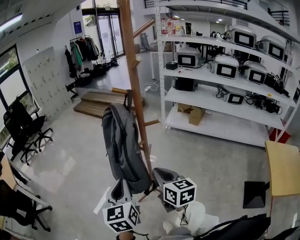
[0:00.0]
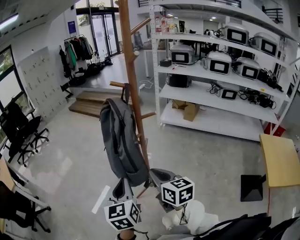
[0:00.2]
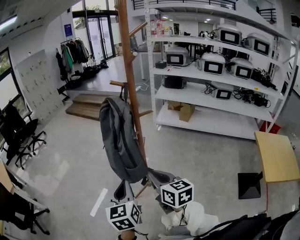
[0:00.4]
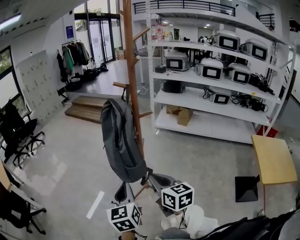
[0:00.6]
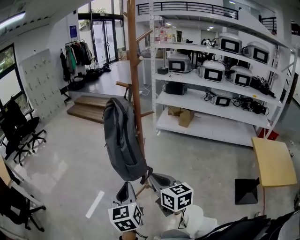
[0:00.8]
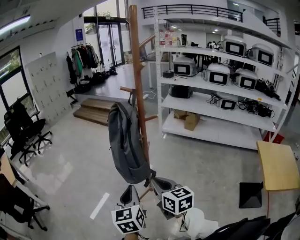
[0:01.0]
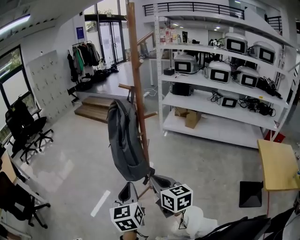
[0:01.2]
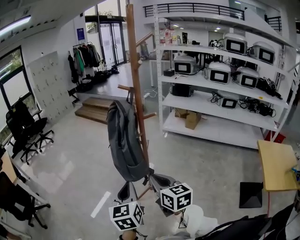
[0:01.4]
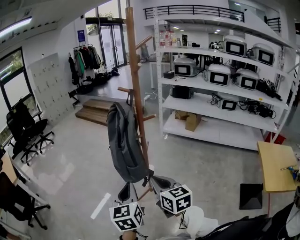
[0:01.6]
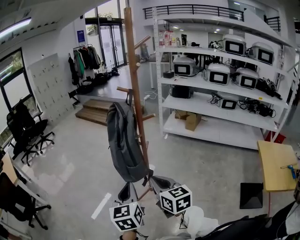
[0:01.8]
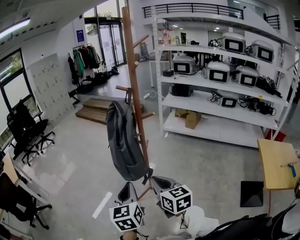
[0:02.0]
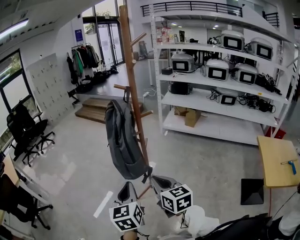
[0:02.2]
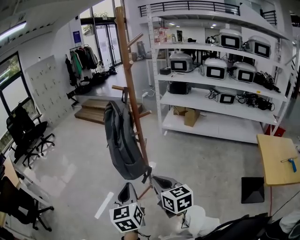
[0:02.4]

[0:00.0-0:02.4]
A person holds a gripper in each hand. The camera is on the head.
0:00.0 to 0:01.2: Both grippers travel together backward, approximately 10 cm.
0:01.2 to 0:02.4: There are only small adjustments of the grippers.

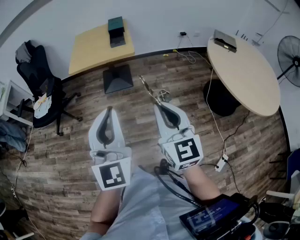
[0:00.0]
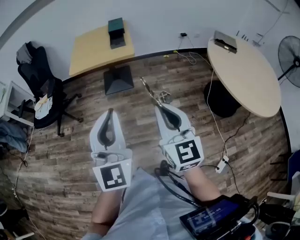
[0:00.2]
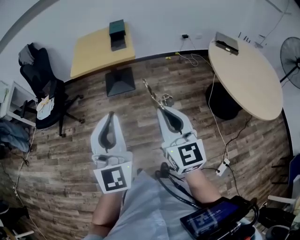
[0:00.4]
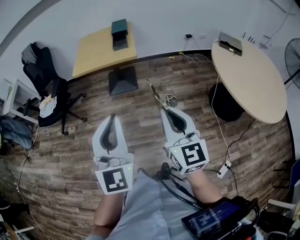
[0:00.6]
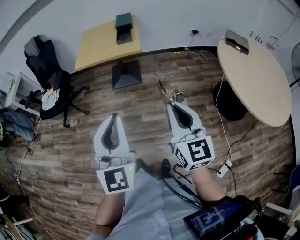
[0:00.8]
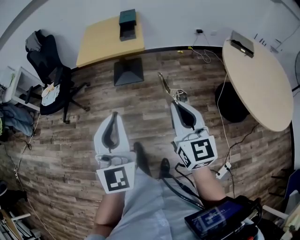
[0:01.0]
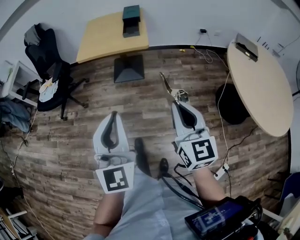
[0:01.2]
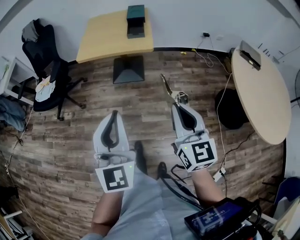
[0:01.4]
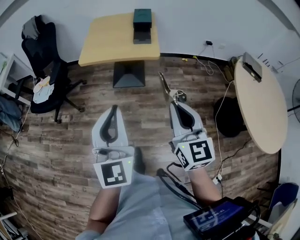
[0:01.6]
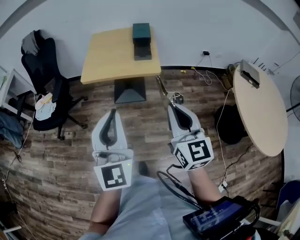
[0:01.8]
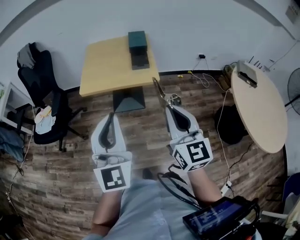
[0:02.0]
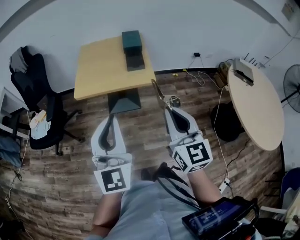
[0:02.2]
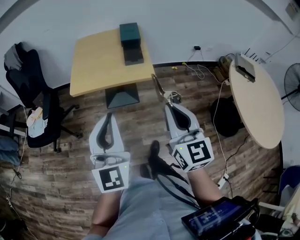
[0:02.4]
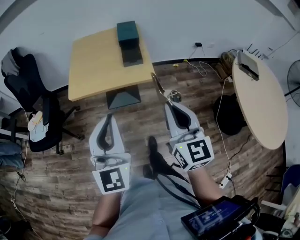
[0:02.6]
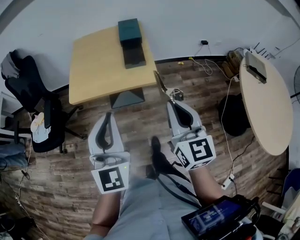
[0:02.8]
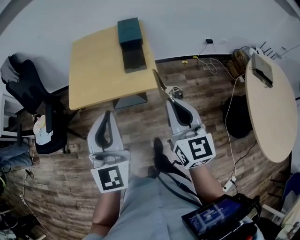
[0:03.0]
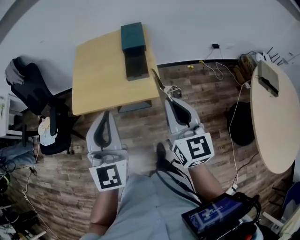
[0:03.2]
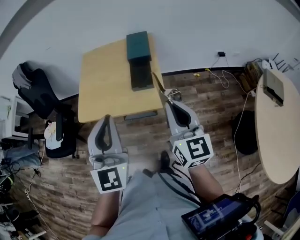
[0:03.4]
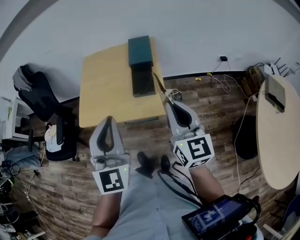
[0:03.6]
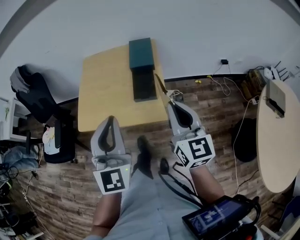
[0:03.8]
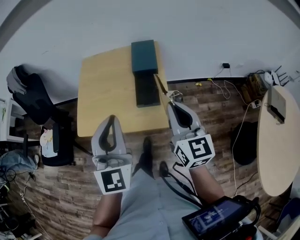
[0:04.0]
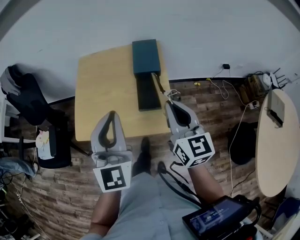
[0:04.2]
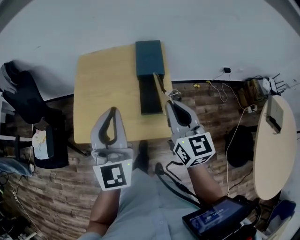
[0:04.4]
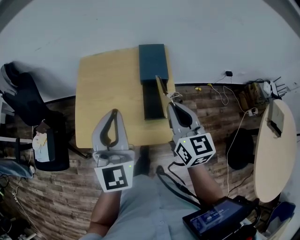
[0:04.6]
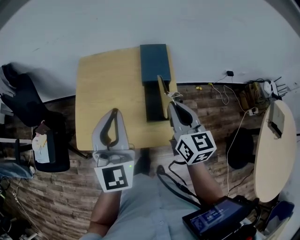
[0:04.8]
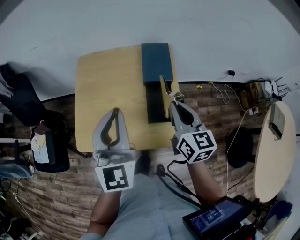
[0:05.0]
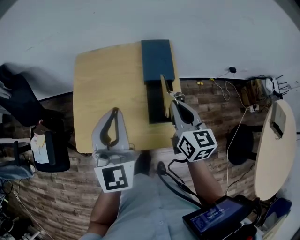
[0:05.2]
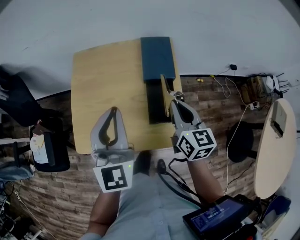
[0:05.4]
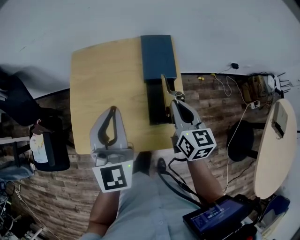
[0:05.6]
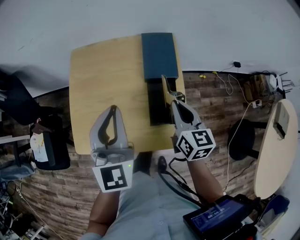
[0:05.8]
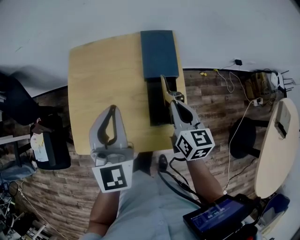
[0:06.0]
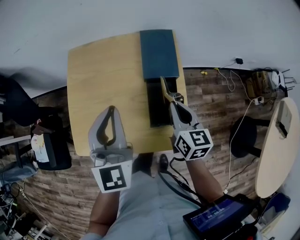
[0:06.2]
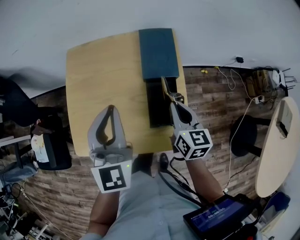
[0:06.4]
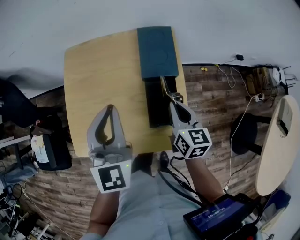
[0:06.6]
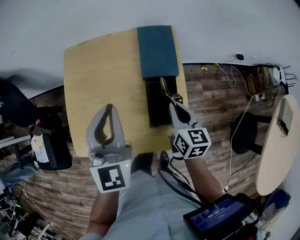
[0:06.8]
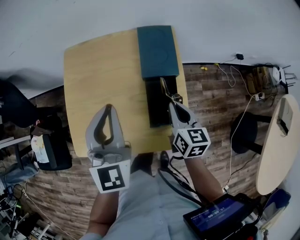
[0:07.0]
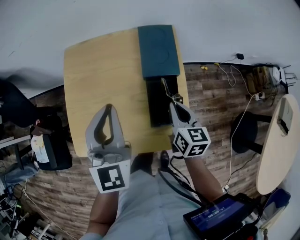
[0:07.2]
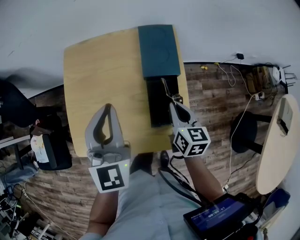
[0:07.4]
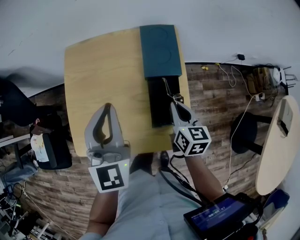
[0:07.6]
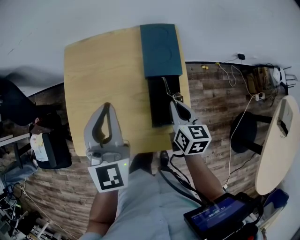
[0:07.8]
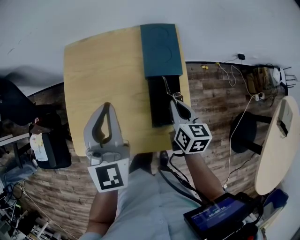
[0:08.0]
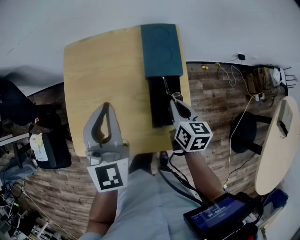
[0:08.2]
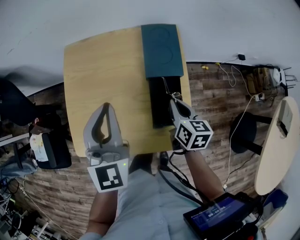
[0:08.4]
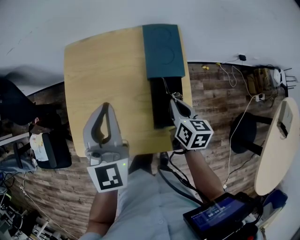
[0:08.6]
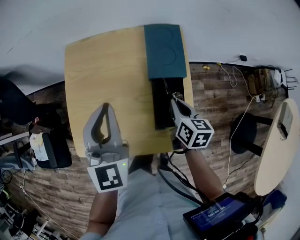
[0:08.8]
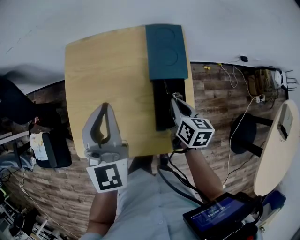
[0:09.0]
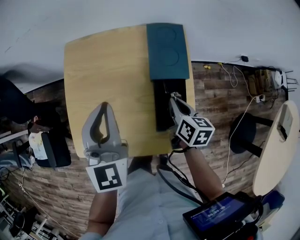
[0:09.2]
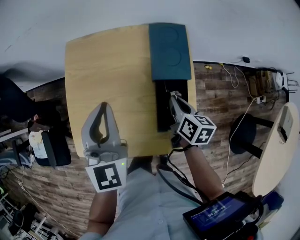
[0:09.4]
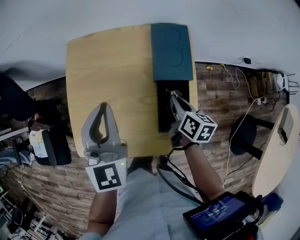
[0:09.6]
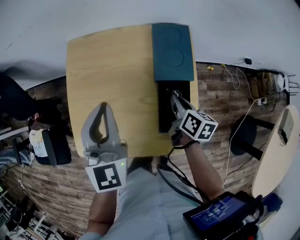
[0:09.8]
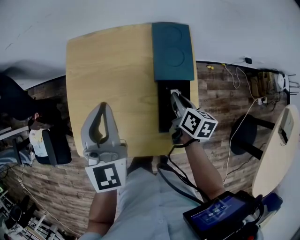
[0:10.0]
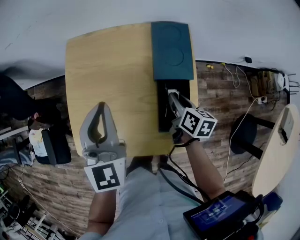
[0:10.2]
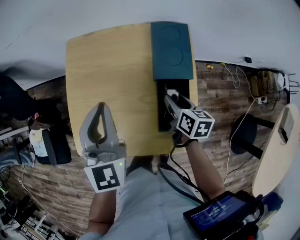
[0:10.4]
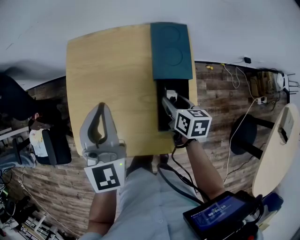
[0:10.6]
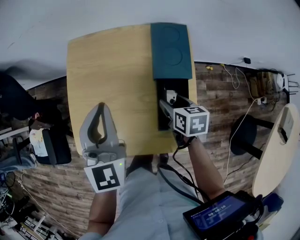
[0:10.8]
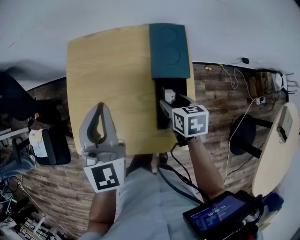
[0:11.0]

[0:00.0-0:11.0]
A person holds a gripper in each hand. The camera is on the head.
0:00.0 to 0:01.6: The grippers both shift forward by roughly 20 cm.
0:01.6 to 0:03.2: The grippers both shift forward by roughly 35 cm.
0:03.2 to 0:04.8: Both grippers travel together forward, roughly 30 cm.
0:04.8 to 0:06.2: The right gripper moves downward and forward, roughly 15 cm. The left gripper is displaced forward and downward by approximately 10 cm.
0:06.2 to 0:07.8: The right gripper travels downward by approximately 5 cm.
0:07.8 to 0:09.4: The right gripper ends up roughly 5 cm from where it was.
0:09.4 to 0:11.0: The right gripper swivels approximately 30 degrees, and opens.

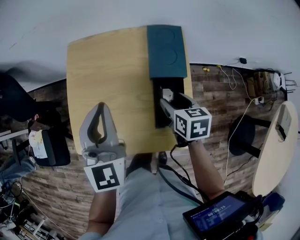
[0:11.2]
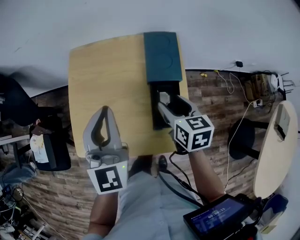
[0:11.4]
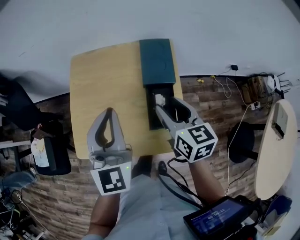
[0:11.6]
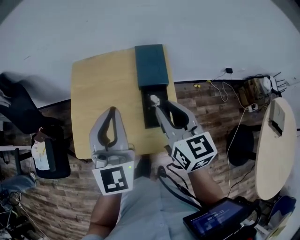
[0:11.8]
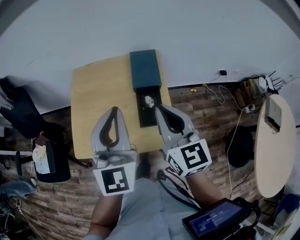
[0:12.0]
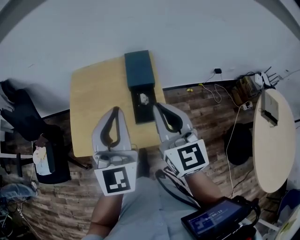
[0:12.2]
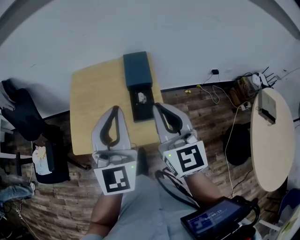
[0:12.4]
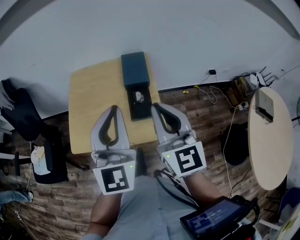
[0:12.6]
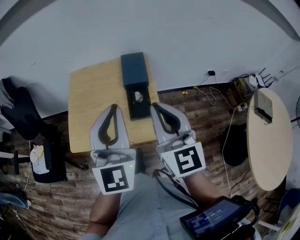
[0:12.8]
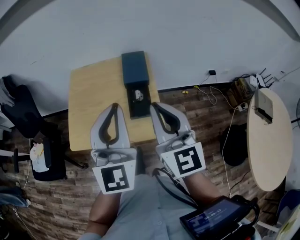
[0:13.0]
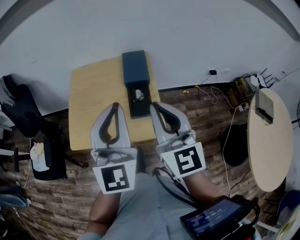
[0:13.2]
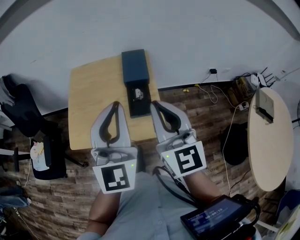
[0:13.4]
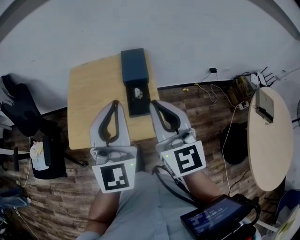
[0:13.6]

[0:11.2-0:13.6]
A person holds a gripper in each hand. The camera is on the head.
0:11.2 to 0:12.4: The right gripper is displaced upward and backward by approximately 35 cm, tilts its fingers roughly 50 degrees upward, and closes. Meanwhile the left gripper goes roughly 25 cm backward, upward and to the right.
0:12.4 to 0:13.6: There are only small adjustments of the grippers.

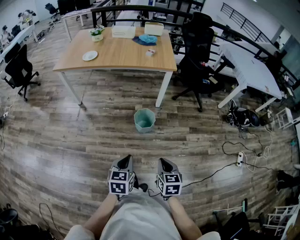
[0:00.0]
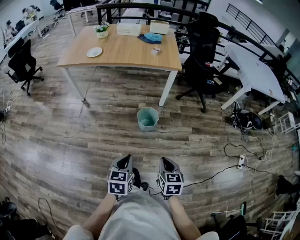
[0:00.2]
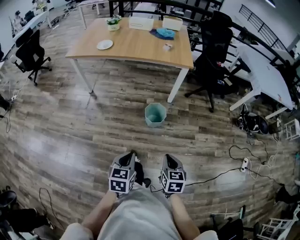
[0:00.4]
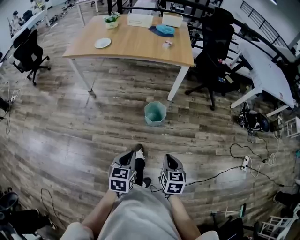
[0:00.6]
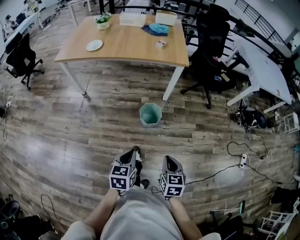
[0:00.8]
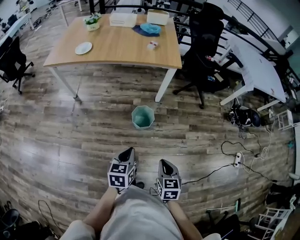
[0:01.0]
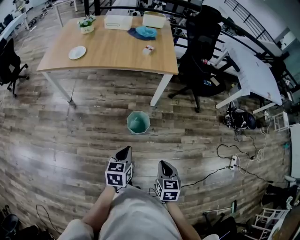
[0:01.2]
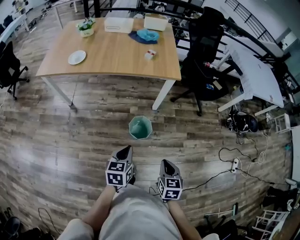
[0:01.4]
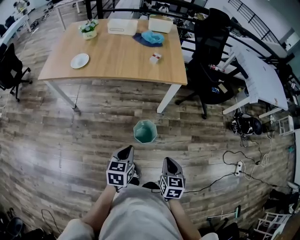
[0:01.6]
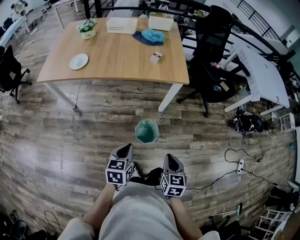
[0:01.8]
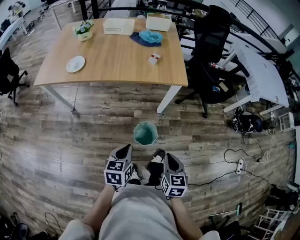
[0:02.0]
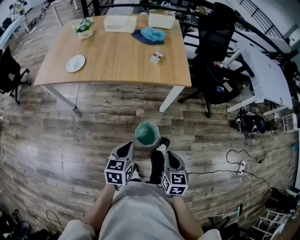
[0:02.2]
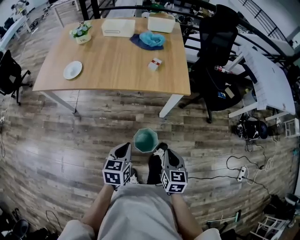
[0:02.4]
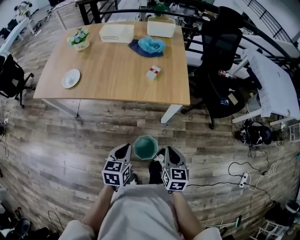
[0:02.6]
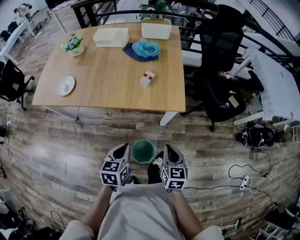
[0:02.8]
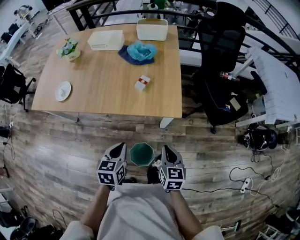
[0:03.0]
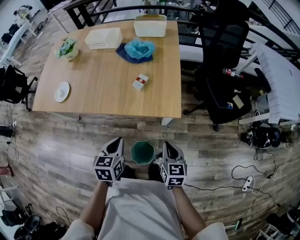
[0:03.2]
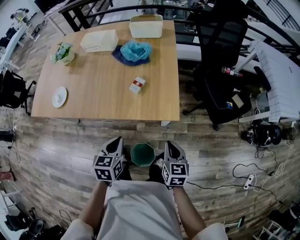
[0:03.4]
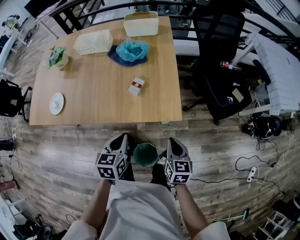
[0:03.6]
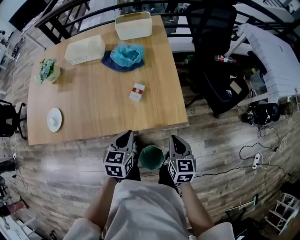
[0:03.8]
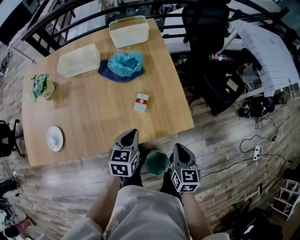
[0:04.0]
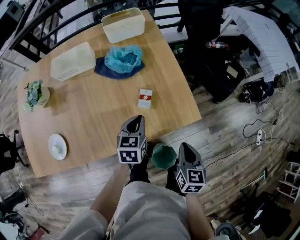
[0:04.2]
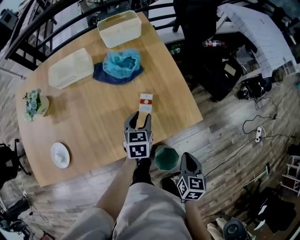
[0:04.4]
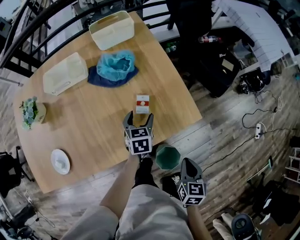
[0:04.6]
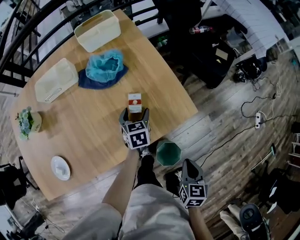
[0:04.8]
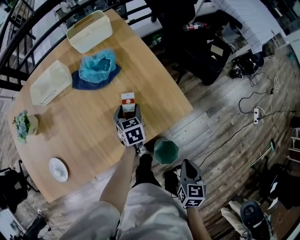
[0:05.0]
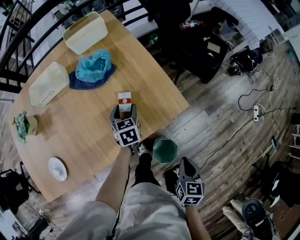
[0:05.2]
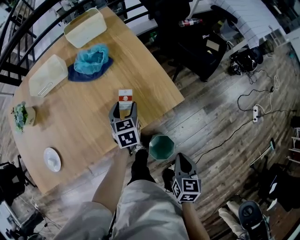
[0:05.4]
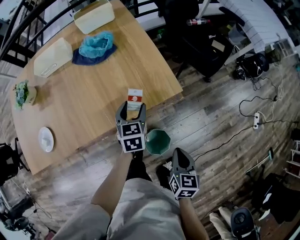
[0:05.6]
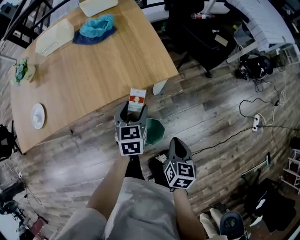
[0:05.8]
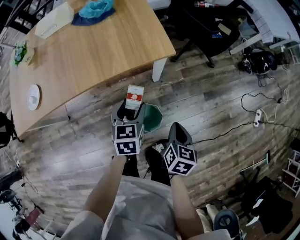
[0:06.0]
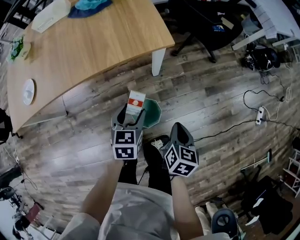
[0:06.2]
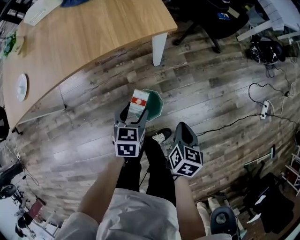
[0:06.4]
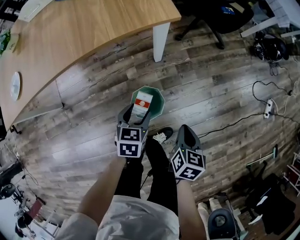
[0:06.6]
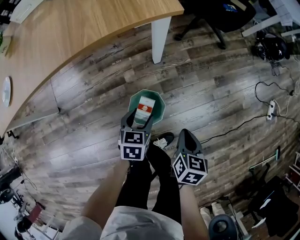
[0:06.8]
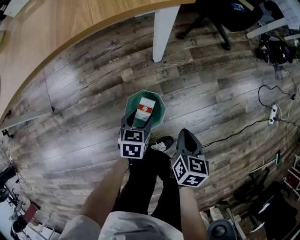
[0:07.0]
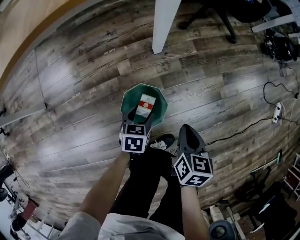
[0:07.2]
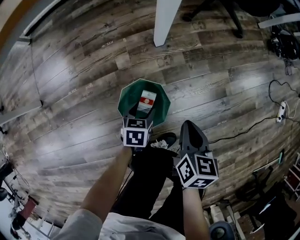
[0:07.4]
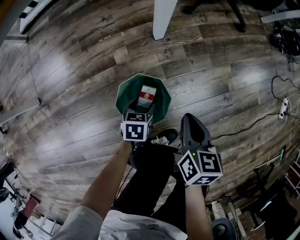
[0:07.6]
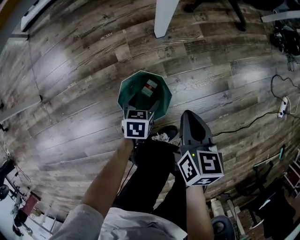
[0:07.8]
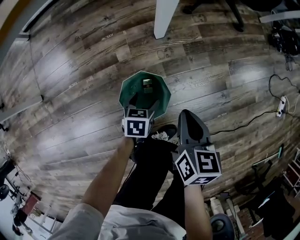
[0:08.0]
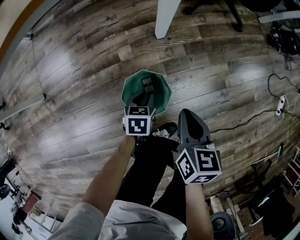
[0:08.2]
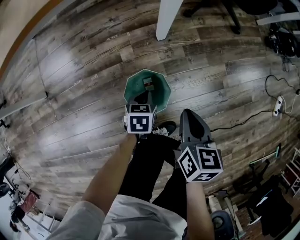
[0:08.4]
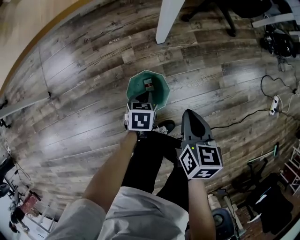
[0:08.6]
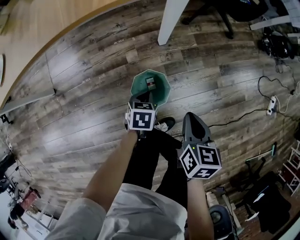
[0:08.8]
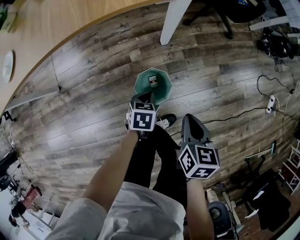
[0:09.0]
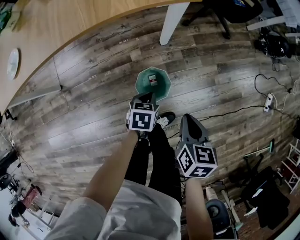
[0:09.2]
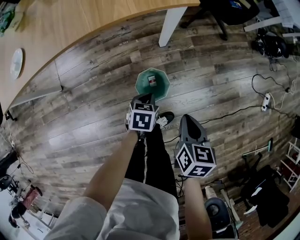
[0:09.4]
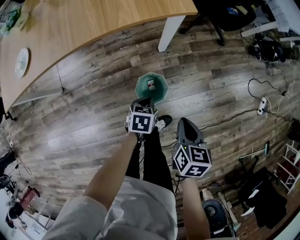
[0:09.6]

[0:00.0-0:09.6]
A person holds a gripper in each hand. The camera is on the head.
0:00.0 to 0:01.6: Both grippers travel together forward, about 25 cm.
0:01.6 to 0:03.2: The grippers both shift forward by approximately 35 cm.
0:03.2 to 0:04.8: The left gripper changes place by some 30 cm, swivels some 20 degrees, and opens up. The right gripper shifts by approximately 10 cm, and rotates approximately 40 degrees.
0:04.8 to 0:06.4: The left gripper heads backward and to the right, covering about 40 cm, while the right gripper is displaced to the right, backward and downward by some 25 cm.
0:06.4 to 0:08.0: The right gripper is displaced downward by approximately 20 cm; the left gripper is displaced downward by some 35 cm.
0:08.0 to 0:09.6: The grippers both shift upward by roughly 25 cm. The left gripper closes.
